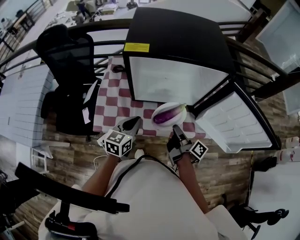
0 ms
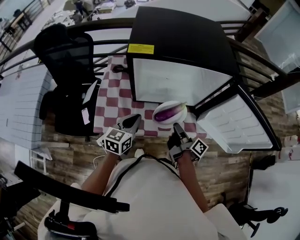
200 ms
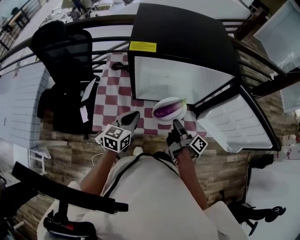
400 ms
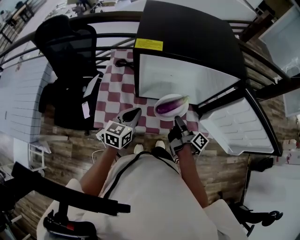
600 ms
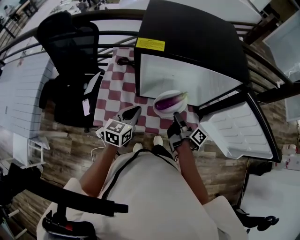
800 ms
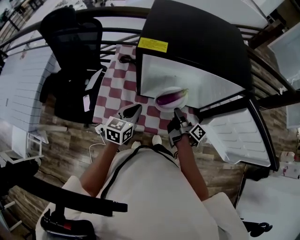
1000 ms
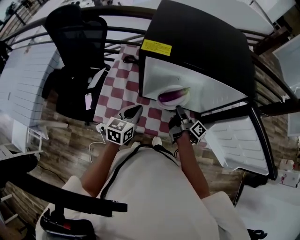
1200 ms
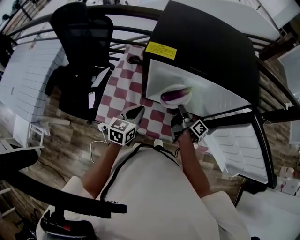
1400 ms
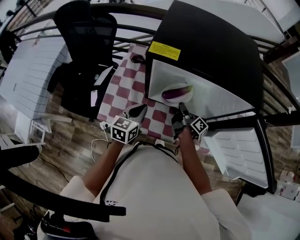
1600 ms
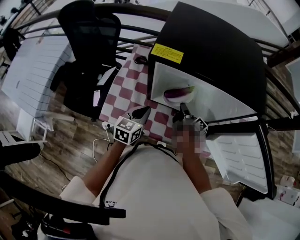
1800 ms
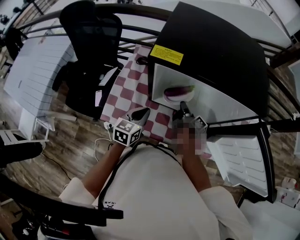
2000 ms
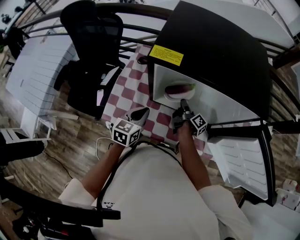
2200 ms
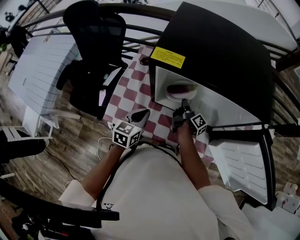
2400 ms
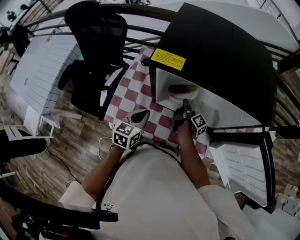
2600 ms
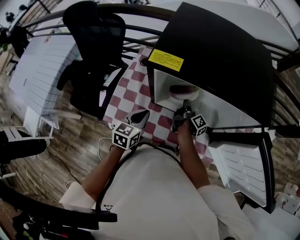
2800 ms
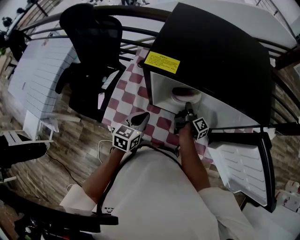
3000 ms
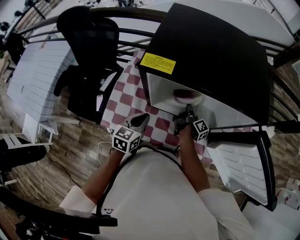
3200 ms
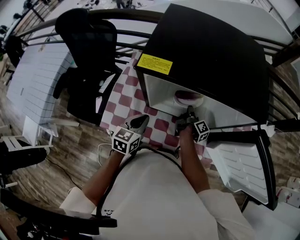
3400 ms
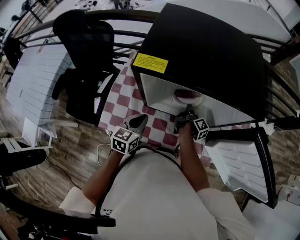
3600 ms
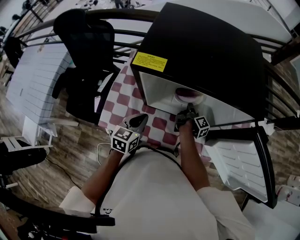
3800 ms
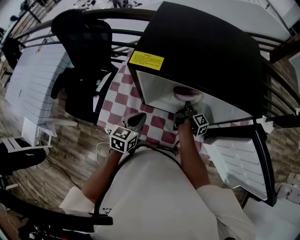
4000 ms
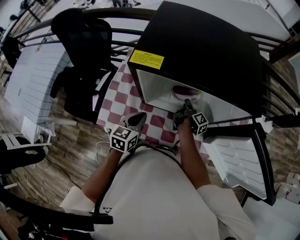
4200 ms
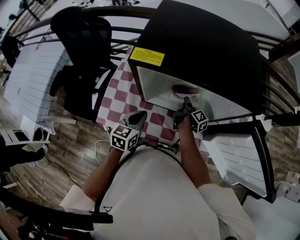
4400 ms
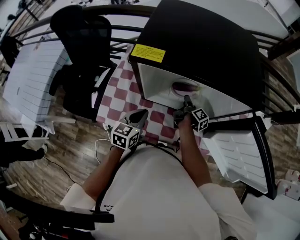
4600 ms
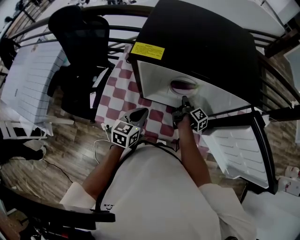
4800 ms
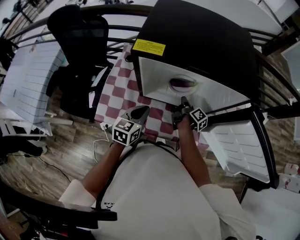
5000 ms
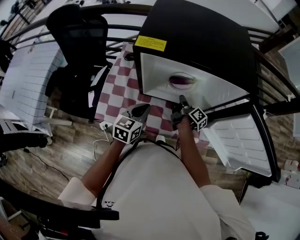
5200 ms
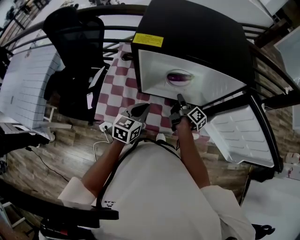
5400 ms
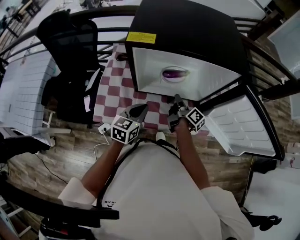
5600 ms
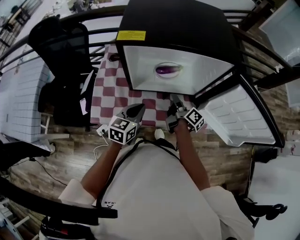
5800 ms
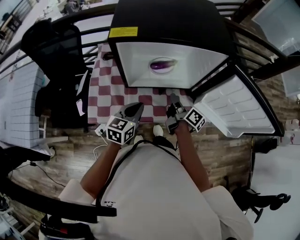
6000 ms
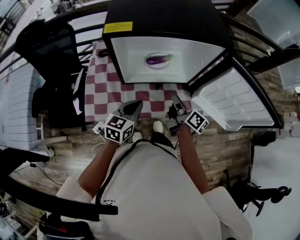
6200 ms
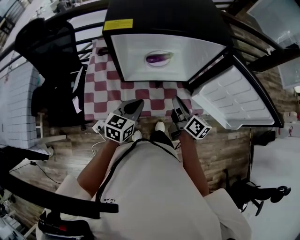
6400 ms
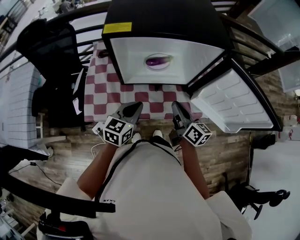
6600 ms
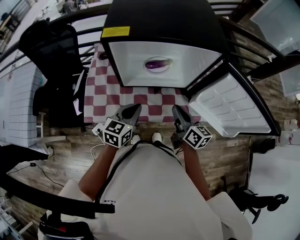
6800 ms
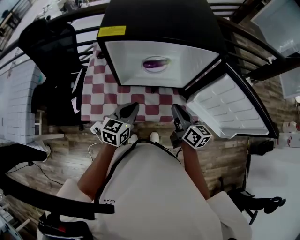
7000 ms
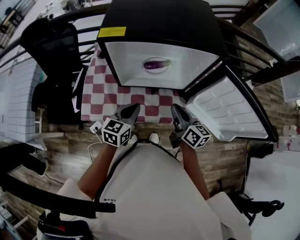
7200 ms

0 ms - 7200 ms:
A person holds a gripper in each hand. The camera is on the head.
0 ms - 1400 ms: The left gripper moves about 10 cm.
4400 ms - 5800 ms: The left gripper moves about 5 cm.

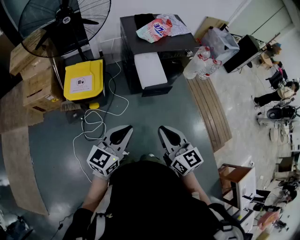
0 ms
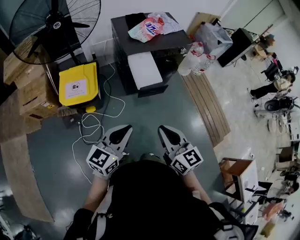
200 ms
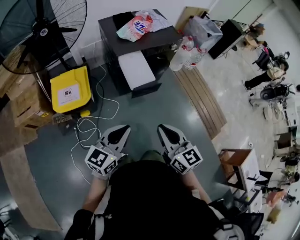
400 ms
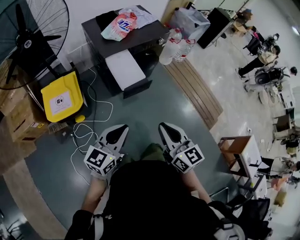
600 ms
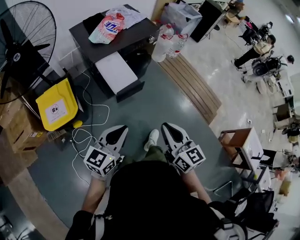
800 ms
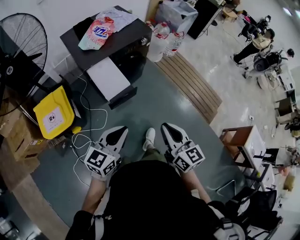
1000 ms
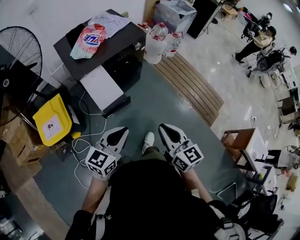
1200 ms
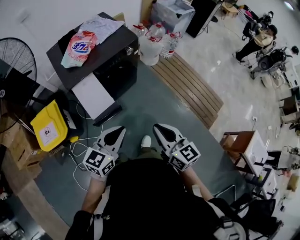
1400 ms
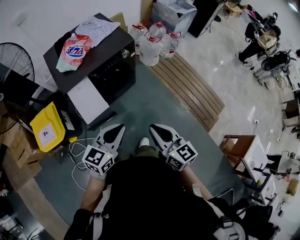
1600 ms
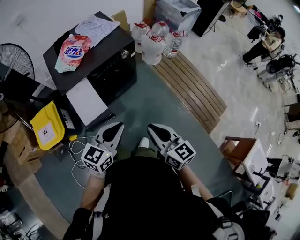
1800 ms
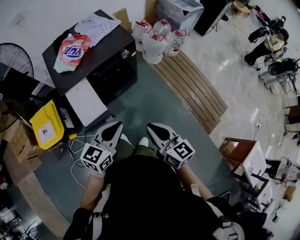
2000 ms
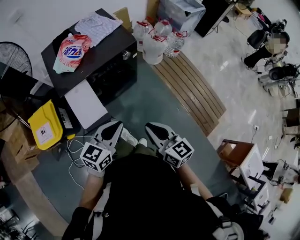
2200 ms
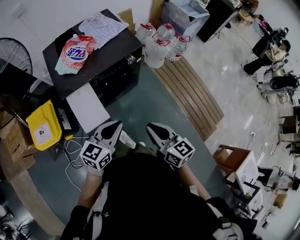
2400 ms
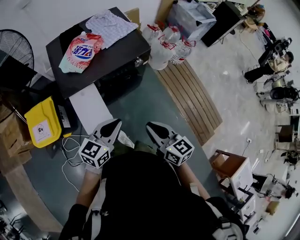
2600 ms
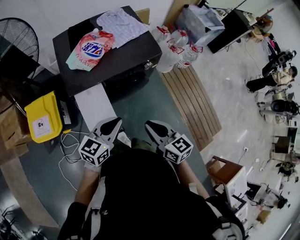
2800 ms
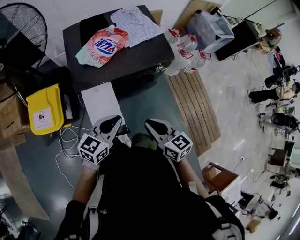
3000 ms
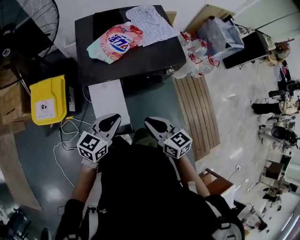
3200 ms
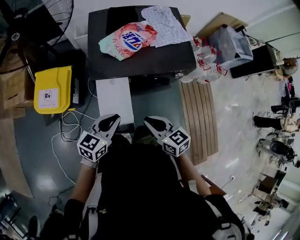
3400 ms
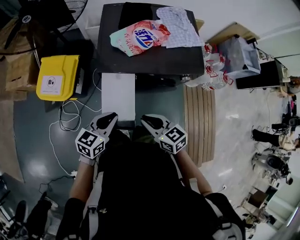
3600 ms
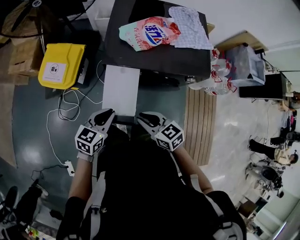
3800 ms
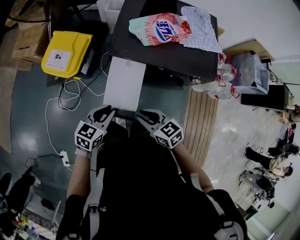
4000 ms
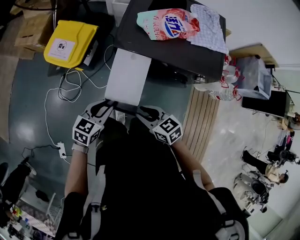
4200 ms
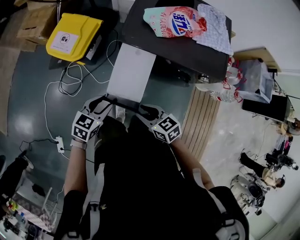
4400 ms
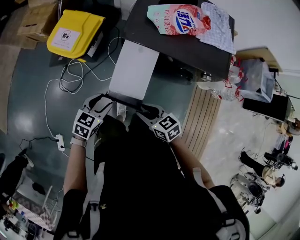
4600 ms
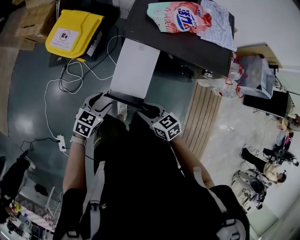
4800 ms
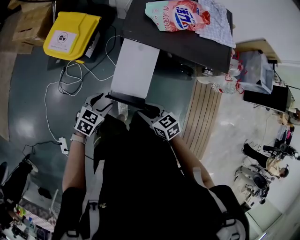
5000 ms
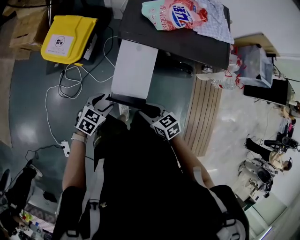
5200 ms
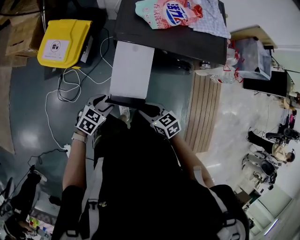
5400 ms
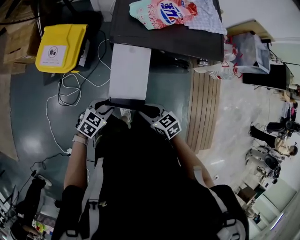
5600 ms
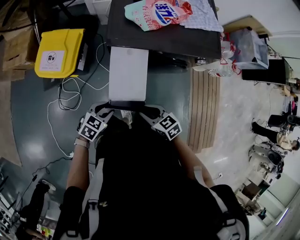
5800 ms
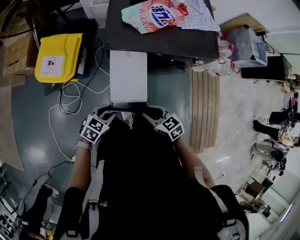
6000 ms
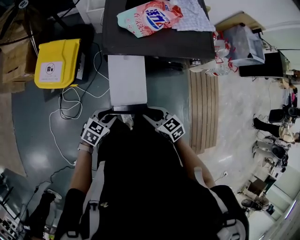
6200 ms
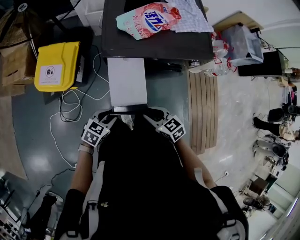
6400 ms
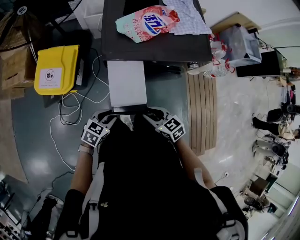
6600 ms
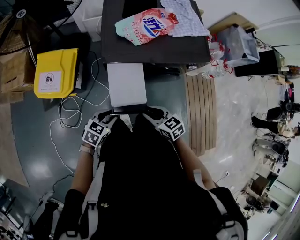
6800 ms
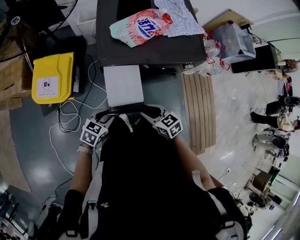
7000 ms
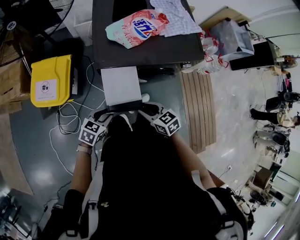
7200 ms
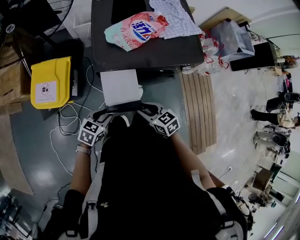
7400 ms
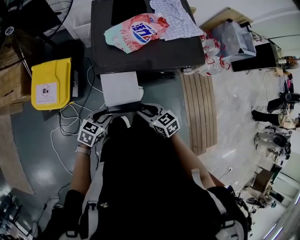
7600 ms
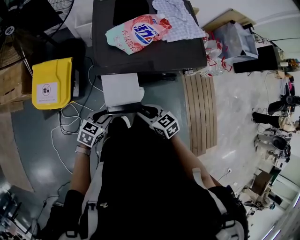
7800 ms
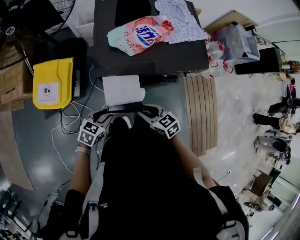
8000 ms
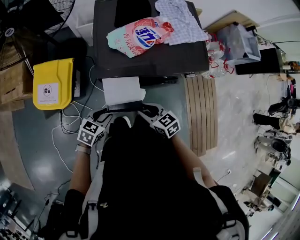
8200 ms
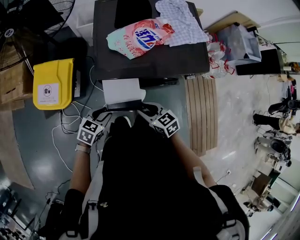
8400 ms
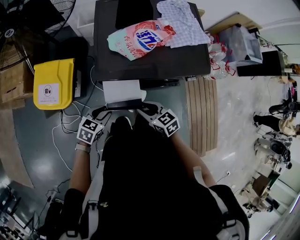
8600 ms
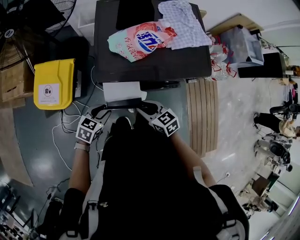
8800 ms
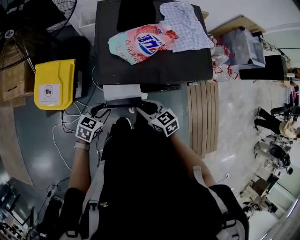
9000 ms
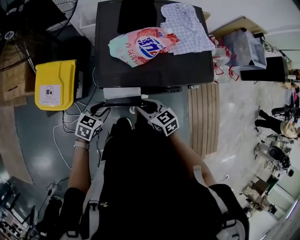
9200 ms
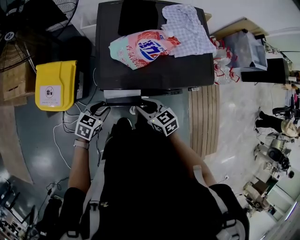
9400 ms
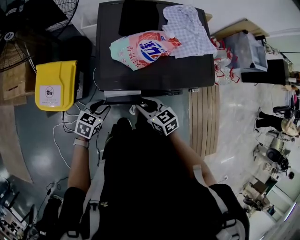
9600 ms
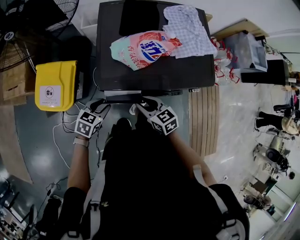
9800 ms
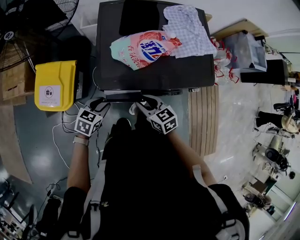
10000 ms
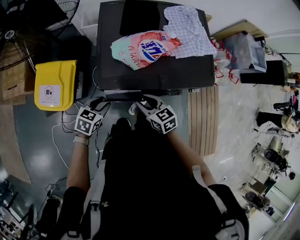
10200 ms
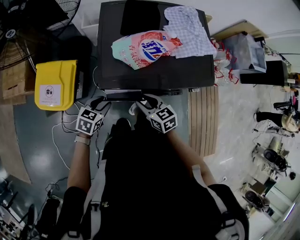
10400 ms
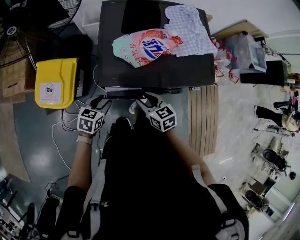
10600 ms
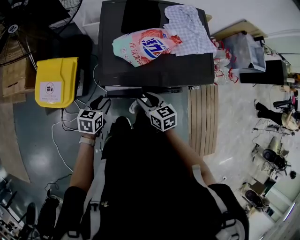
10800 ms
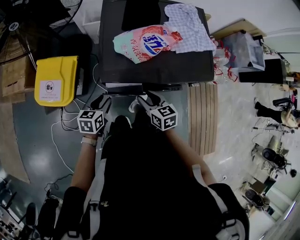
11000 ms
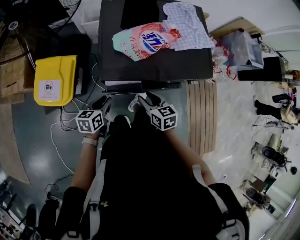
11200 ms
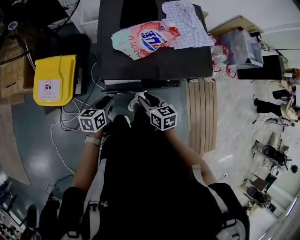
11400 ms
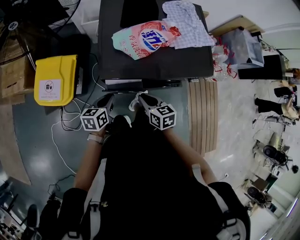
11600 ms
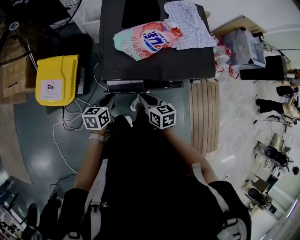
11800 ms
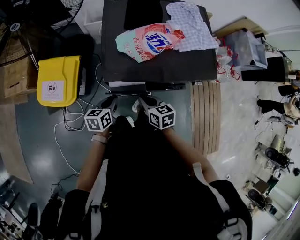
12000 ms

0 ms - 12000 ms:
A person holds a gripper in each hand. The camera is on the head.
0 ms - 1600 ms: The right gripper shifts roughly 35 cm to the right and forward; the left gripper heads forward and to the right, covering some 35 cm.
1600 ms - 3000 ms: The two grippers go some 25 cm forward and to the left. The right gripper turns by some 30 degrees.
3000 ms - 4400 ms: The left gripper shifts by about 20 cm, turns by some 40 degrees, and opens up, while the right gripper goes roughly 10 cm downward, rotates some 50 degrees, and opens up.
4400 ms - 6000 ms: The left gripper moves downward, roughly 5 cm, and changes its angle by about 30 degrees.
6000 ms - 7600 ms: The grippers both shift forward by roughly 10 cm.
7600 ms - 9000 ms: The two grippers go roughly 10 cm forward.
9000 ms - 10400 ms: Both grippers move forward, about 5 cm.
10400 ms - 12000 ms: The left gripper rotates approximately 30 degrees, and closes up; the right gripper closes up.

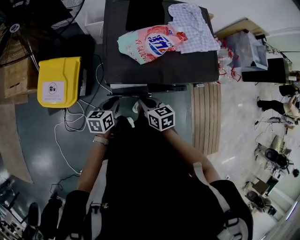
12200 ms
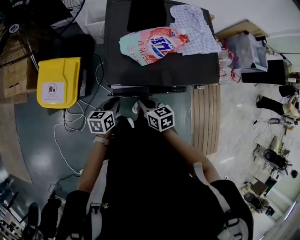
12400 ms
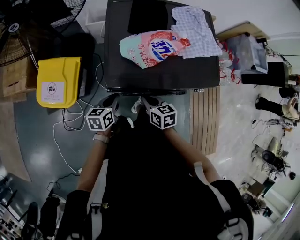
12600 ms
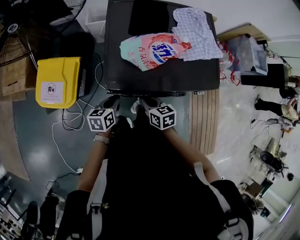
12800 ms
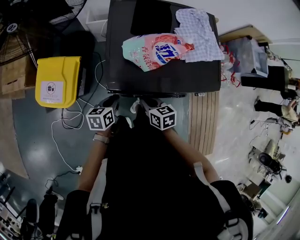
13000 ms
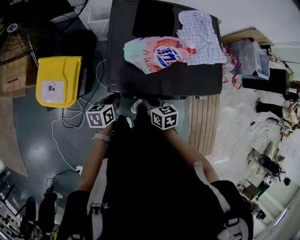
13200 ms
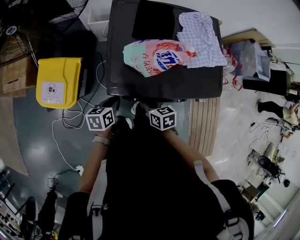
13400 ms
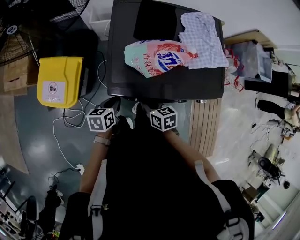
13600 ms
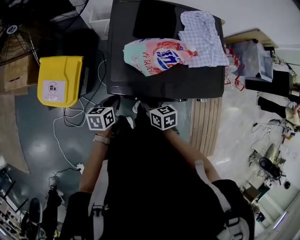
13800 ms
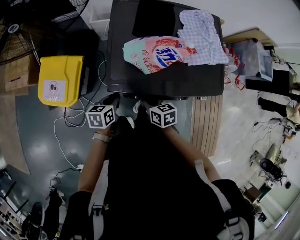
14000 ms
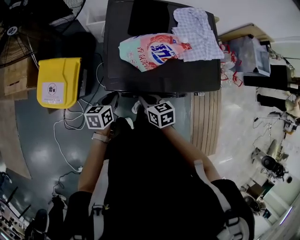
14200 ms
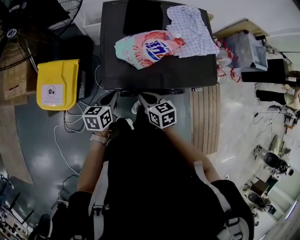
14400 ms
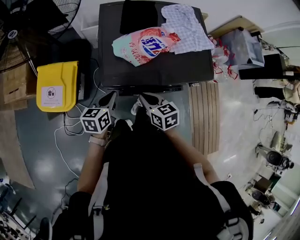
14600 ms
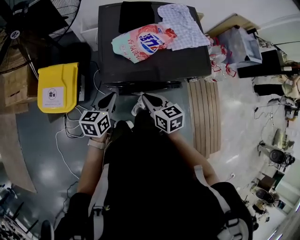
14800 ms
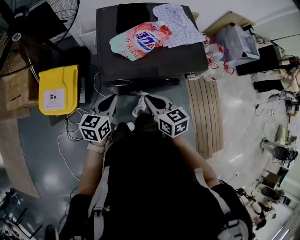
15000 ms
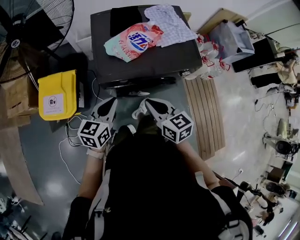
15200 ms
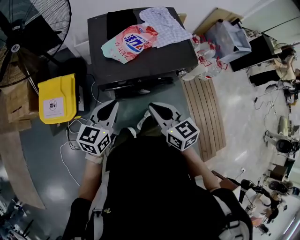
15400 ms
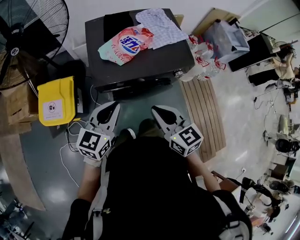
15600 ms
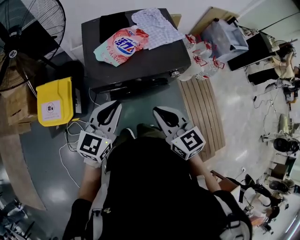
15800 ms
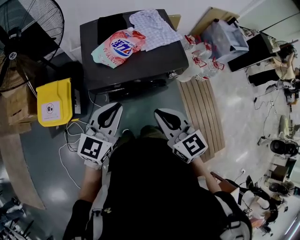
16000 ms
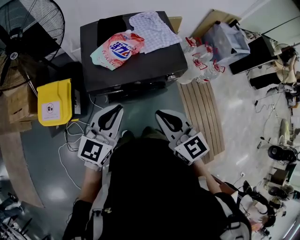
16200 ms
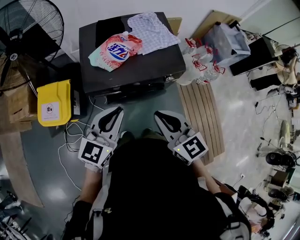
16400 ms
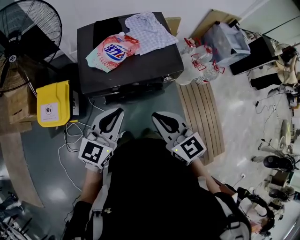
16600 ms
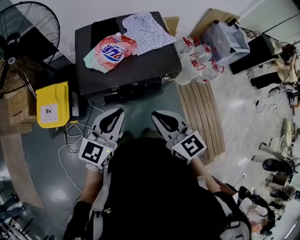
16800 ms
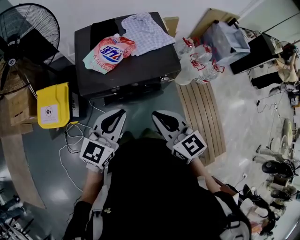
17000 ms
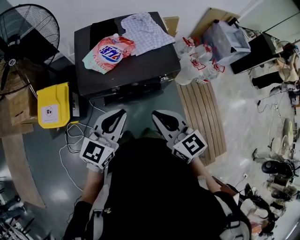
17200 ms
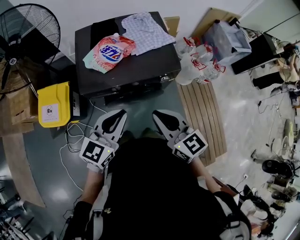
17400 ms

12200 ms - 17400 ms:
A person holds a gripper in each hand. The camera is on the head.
12200 ms - 14000 ms: The grippers both shift forward by approximately 5 cm.
14000 ms - 15600 ms: Both grippers travel together upward and backward, some 30 cm. The right gripper turns by about 30 degrees. The left gripper turns by some 50 degrees.
15600 ms - 17400 ms: Both grippers move to the right, roughly 15 cm.
